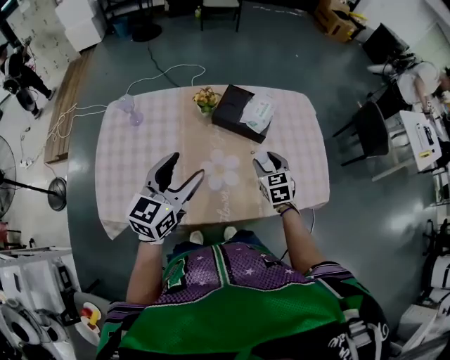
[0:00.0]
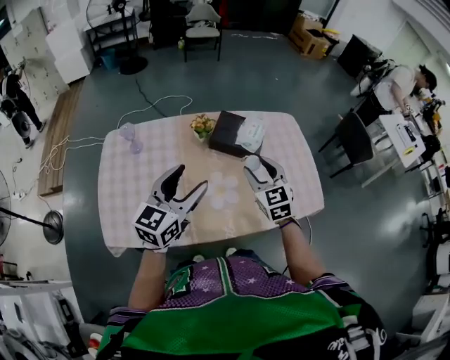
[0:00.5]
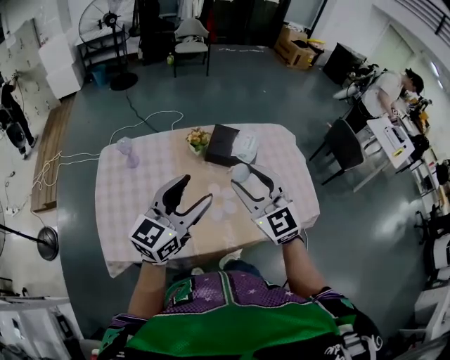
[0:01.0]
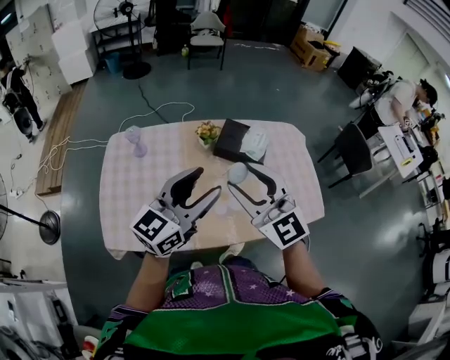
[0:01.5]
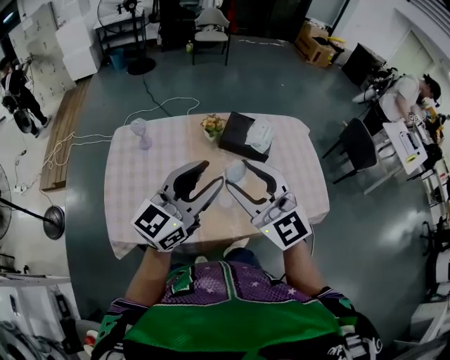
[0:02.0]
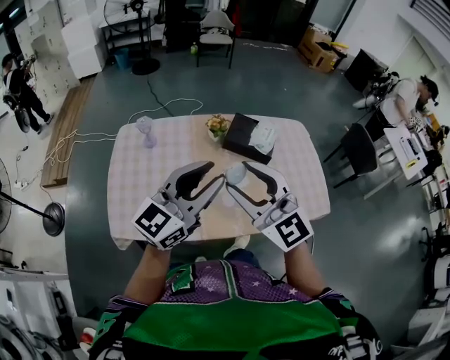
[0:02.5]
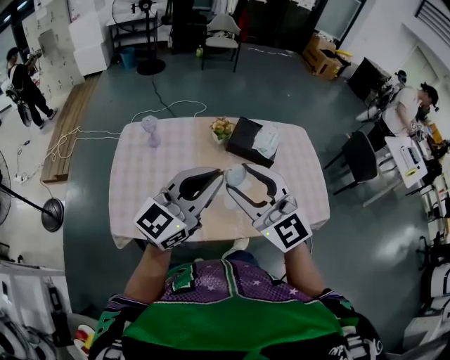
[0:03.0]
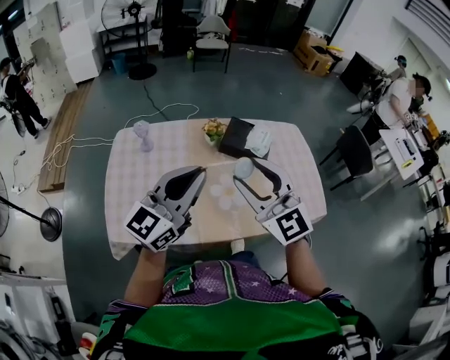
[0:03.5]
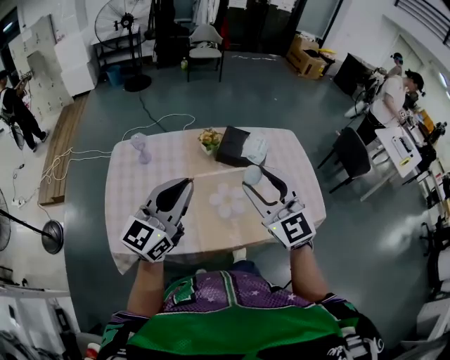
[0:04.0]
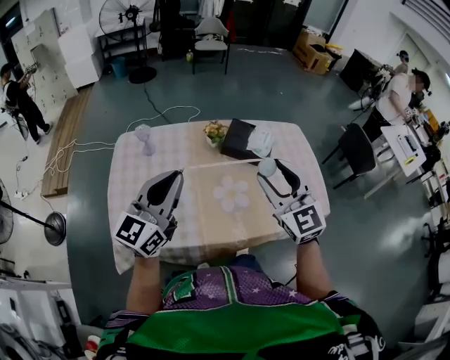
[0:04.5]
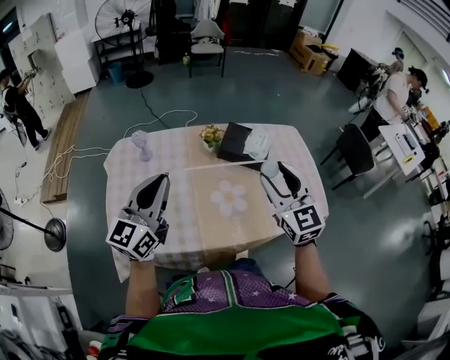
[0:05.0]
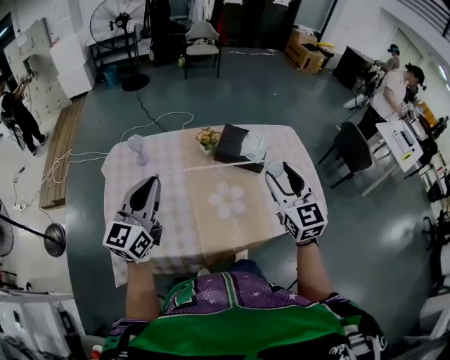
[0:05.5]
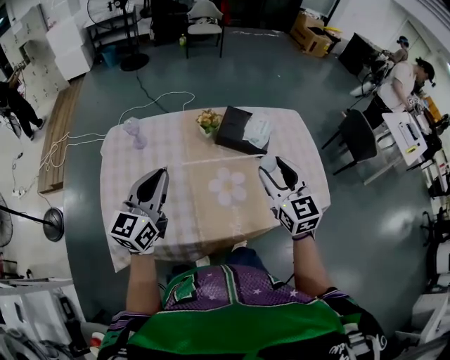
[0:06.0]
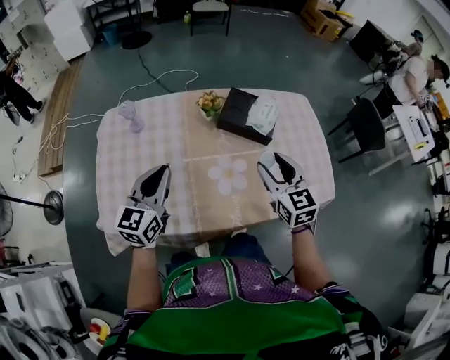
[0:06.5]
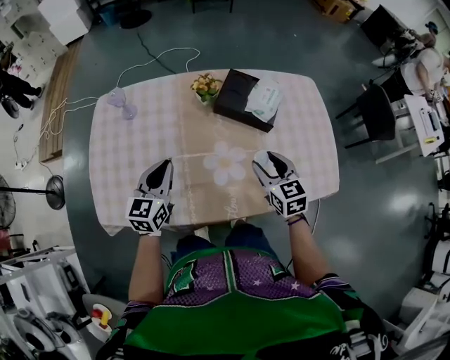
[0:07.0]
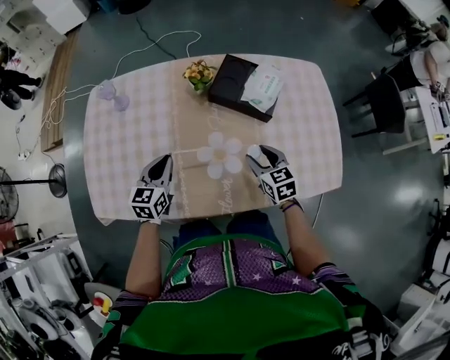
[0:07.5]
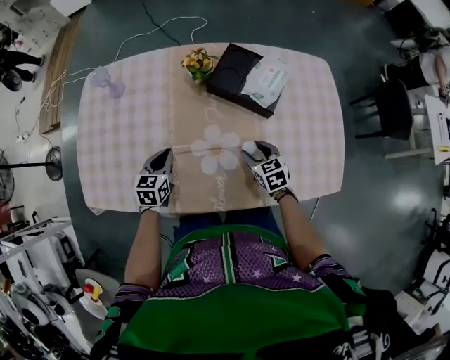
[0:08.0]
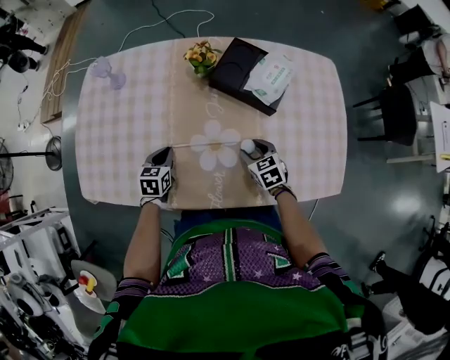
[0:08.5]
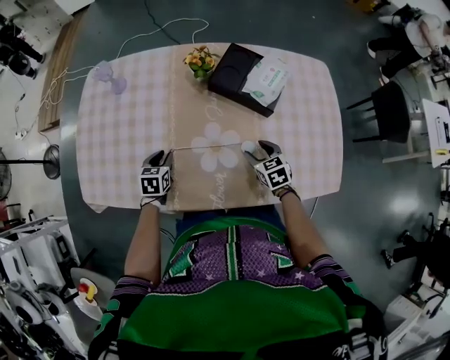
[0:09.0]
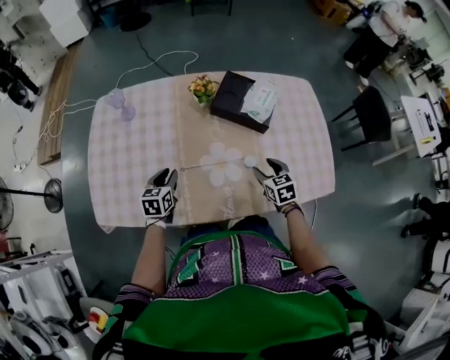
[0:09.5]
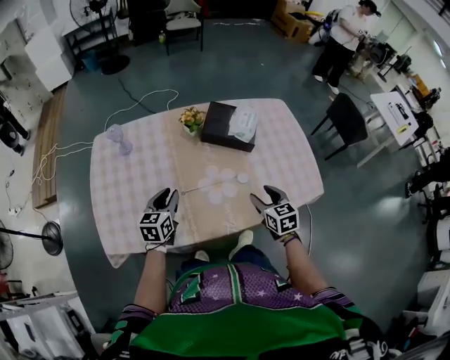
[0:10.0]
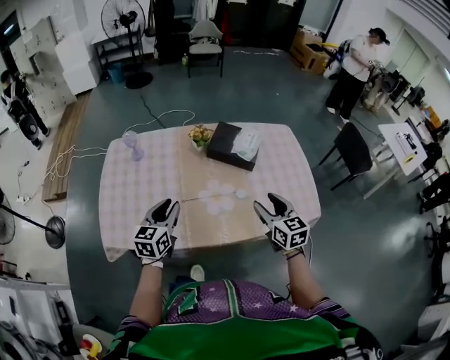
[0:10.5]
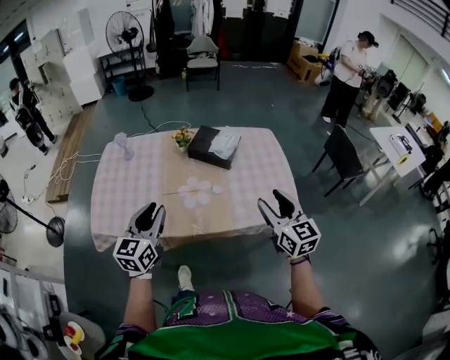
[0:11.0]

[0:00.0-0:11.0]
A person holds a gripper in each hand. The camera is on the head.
0:00.0 to 0:02.0: The left gripper travels upward and backward by roughly 15 cm, swivels approximately 20 degrees, and closes up. Meanwhile the right gripper moves upward, to the left and backward, approximately 40 cm, and angles its fingers upward, by approximately 40 degrees.
0:02.0 to 0:03.5: The left gripper closes up.
0:03.5 to 0:05.5: The left gripper is displaced to the left by some 10 cm. Meanwhile the right gripper shifts approximately 15 cm to the right, downward and forward, and rotates roughly 30 degrees.
0:05.5 to 0:07.5: Both grippers move downward, roughly 30 cm. The left gripper tips its fingers downward by approximately 30 degrees; the right gripper tips its fingers downward by approximately 30 degrees.
0:07.5 to 0:09.0: The left gripper shifts roughly 15 cm downward, and swivels some 20 degrees. The right gripper heads downward, covering roughly 10 cm.
0:09.0 to 0:11.0: The two grippers go approximately 40 cm upward and backward. The right gripper points its fingers approximately 40 degrees further upward. Meanwhile the left gripper angles its fingers upward, by roughly 40 degrees.

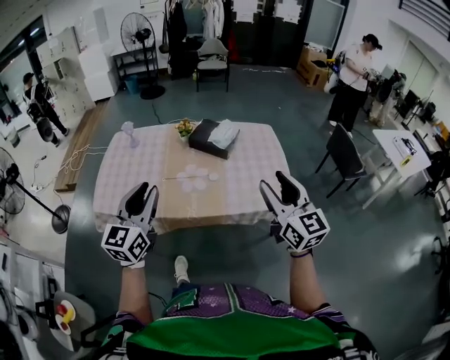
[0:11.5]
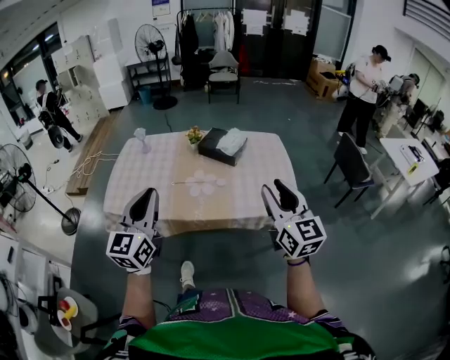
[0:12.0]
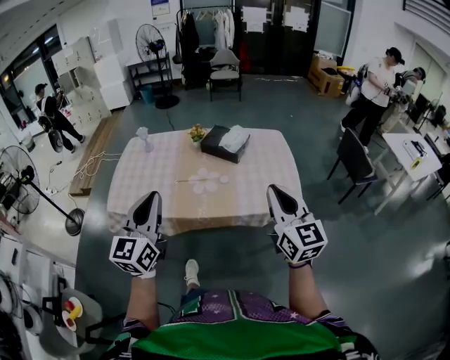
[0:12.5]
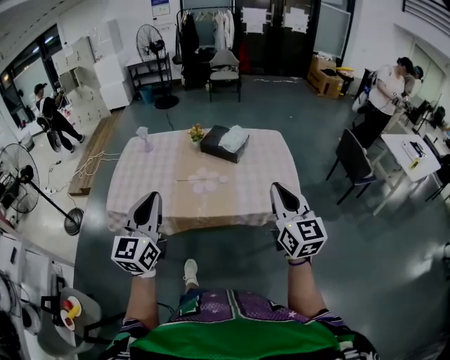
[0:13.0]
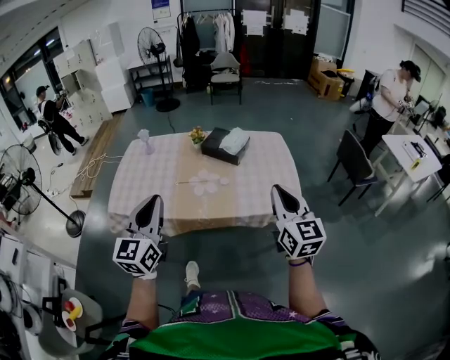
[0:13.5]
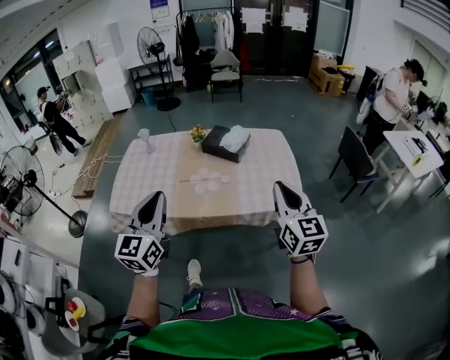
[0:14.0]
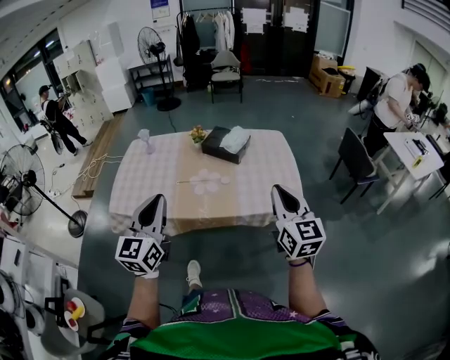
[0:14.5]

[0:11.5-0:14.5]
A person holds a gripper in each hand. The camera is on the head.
0:11.5 to 0:13.0: The left gripper heads backward, covering approximately 5 cm, while the right gripper closes up.
0:13.0 to 0:14.5: The grippers move only a little.

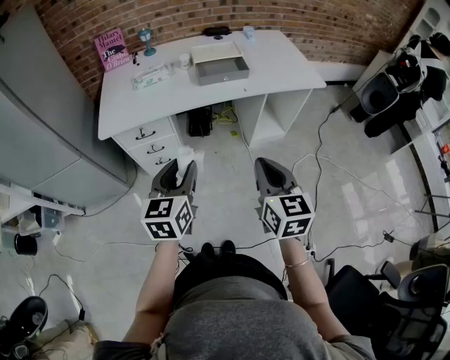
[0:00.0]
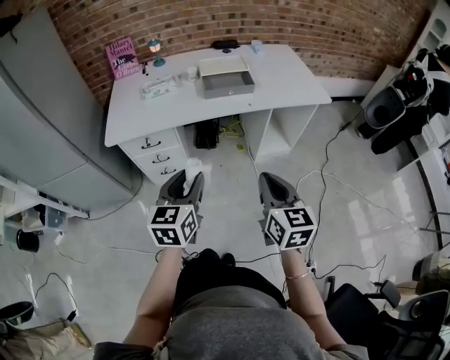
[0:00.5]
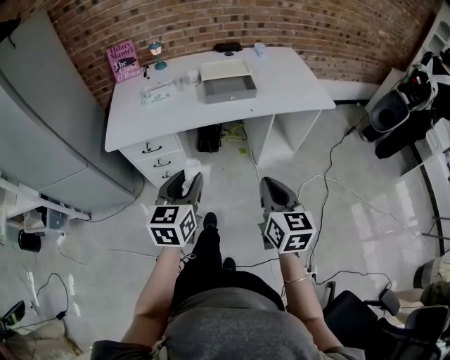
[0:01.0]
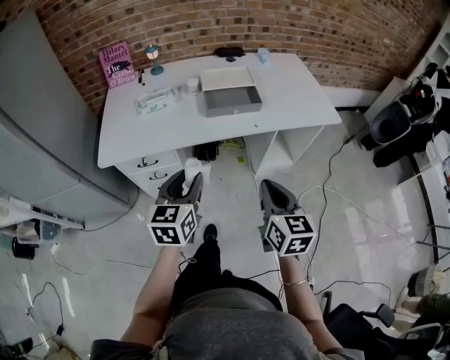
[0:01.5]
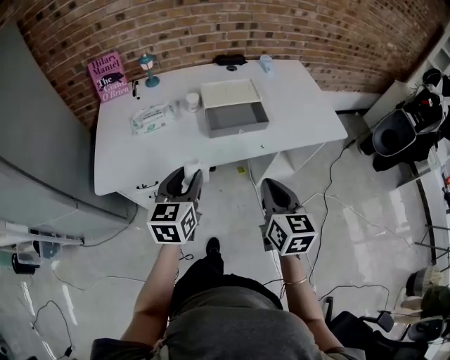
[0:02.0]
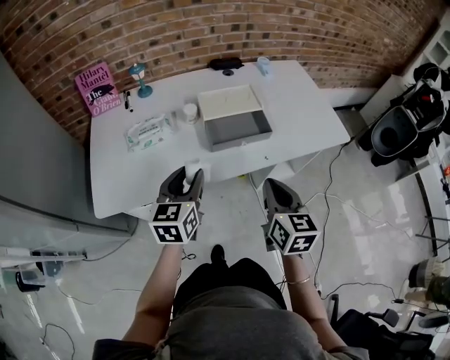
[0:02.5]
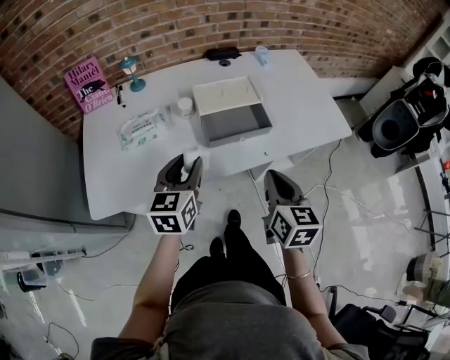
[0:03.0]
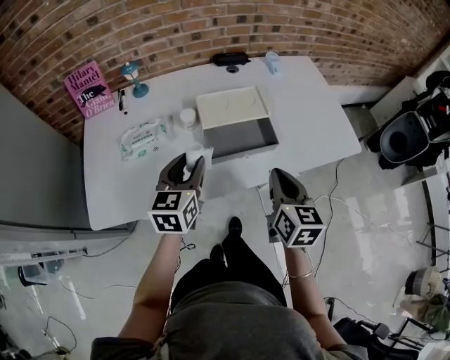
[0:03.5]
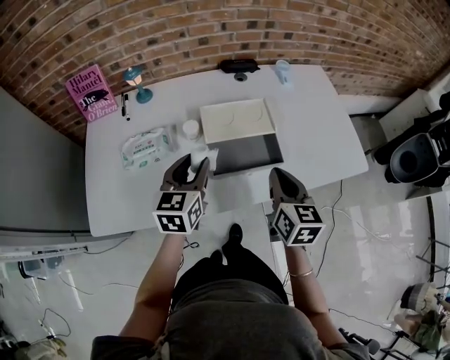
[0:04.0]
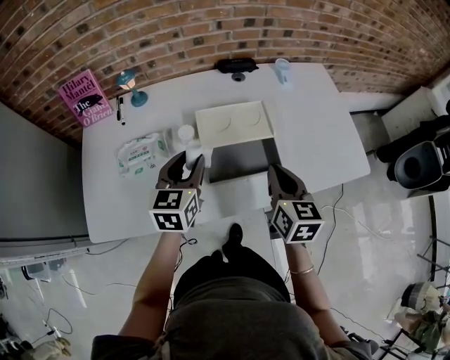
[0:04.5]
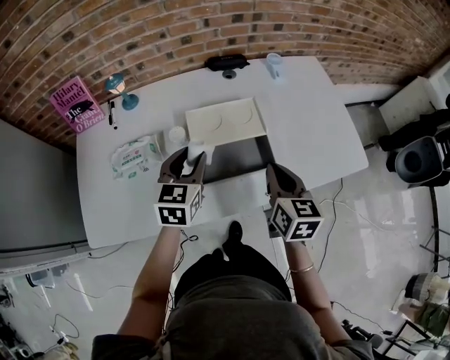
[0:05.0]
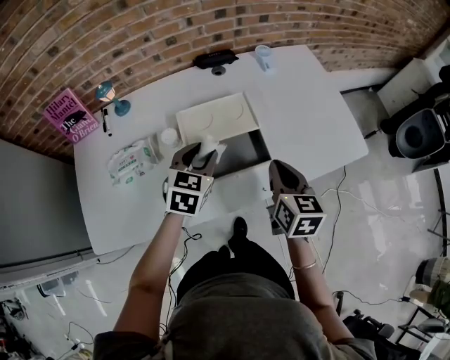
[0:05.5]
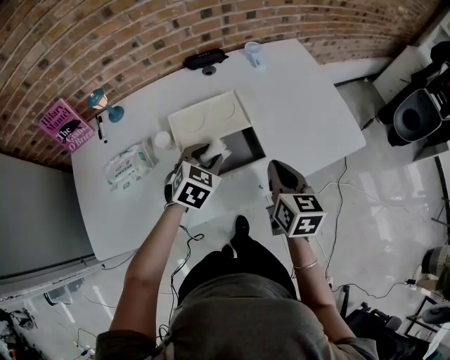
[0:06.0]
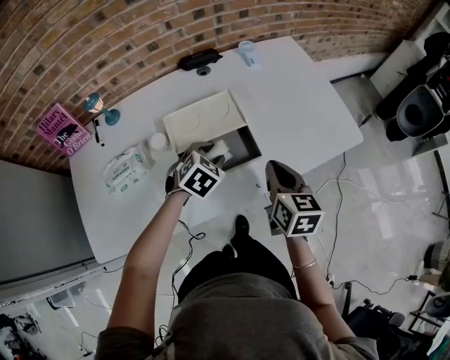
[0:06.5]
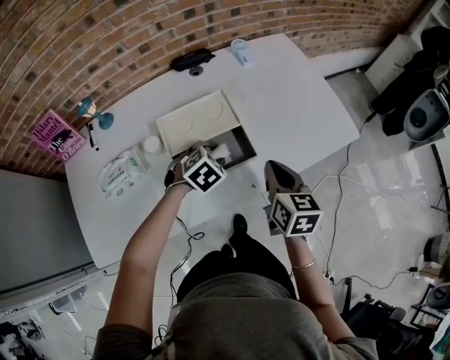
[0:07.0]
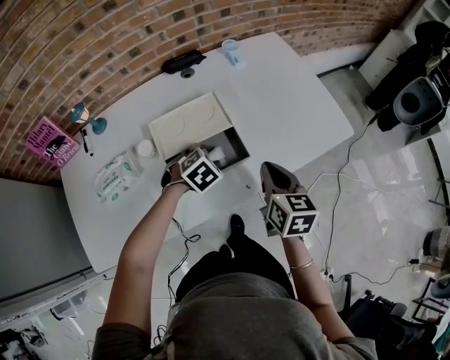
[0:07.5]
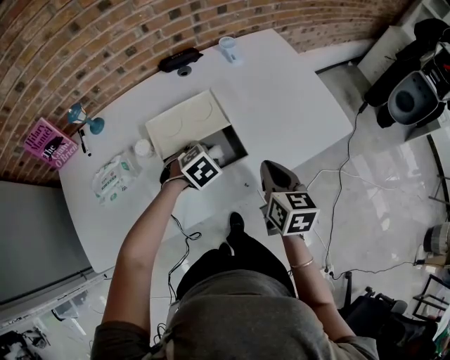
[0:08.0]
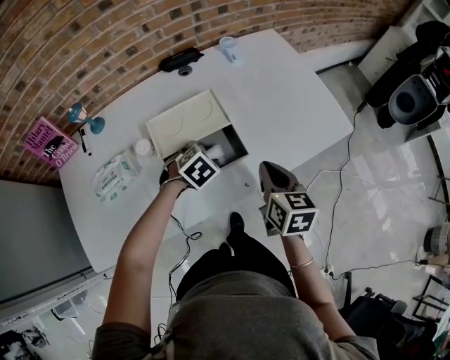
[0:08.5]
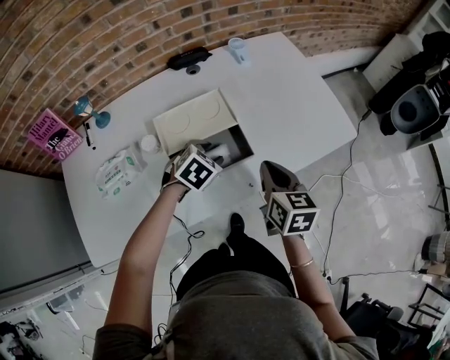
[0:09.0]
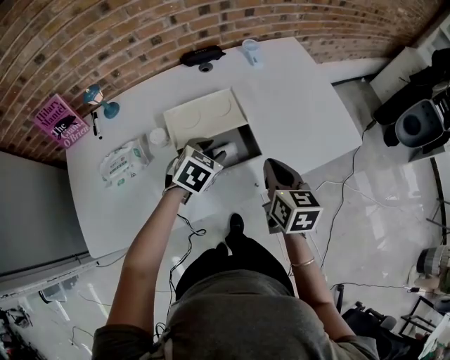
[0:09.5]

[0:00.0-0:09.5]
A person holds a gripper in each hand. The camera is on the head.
0:00.0 to 0:02.0: Both grippers travel together forward, about 25 cm.
0:02.0 to 0:04.0: The two grippers go some 25 cm forward.
0:04.0 to 0:05.5: The right gripper changes place by roughly 5 cm. The left gripper moves to the right and forward, approximately 10 cm, and turns by some 30 degrees.
0:05.5 to 0:07.5: The left gripper heads downward and to the right, covering some 15 cm, and angles its fingers downward, by some 30 degrees.
0:07.5 to 0:09.5: The left gripper ends up approximately 5 cm from where it was, and turns by about 20 degrees.

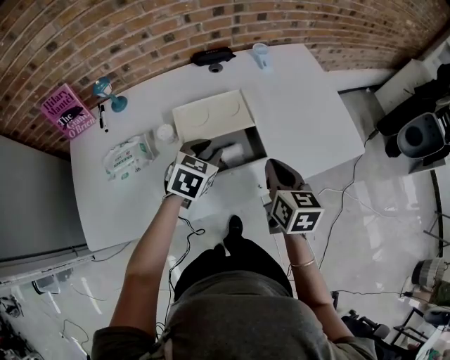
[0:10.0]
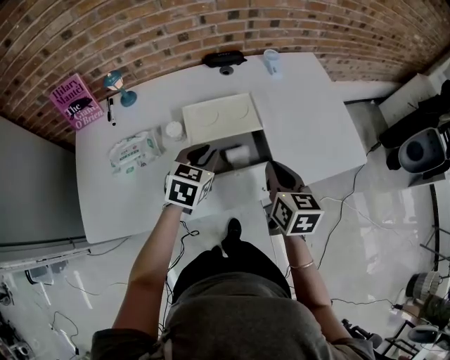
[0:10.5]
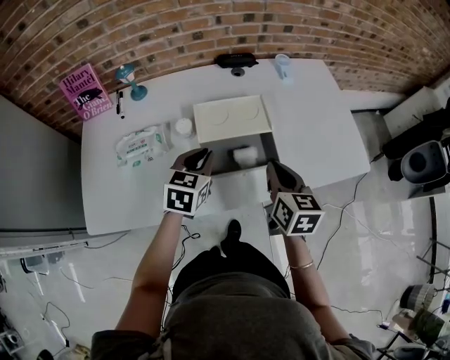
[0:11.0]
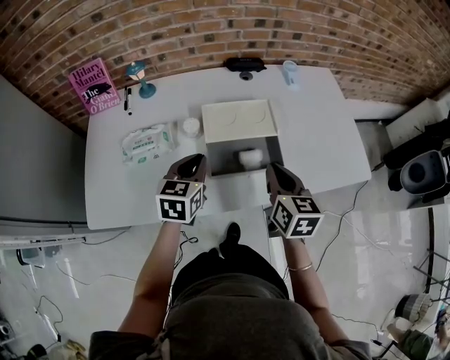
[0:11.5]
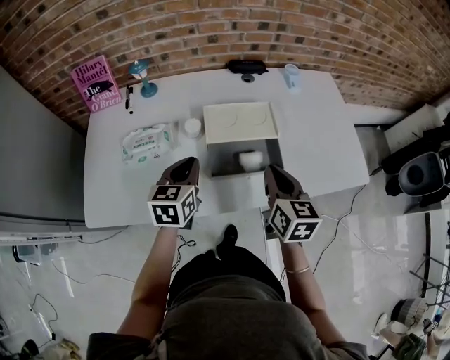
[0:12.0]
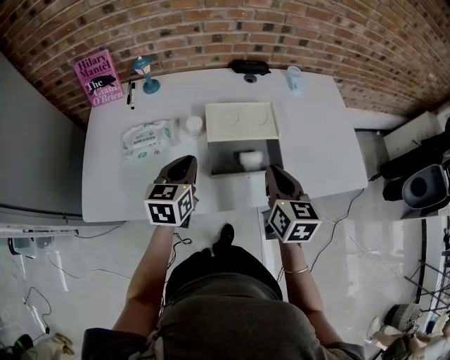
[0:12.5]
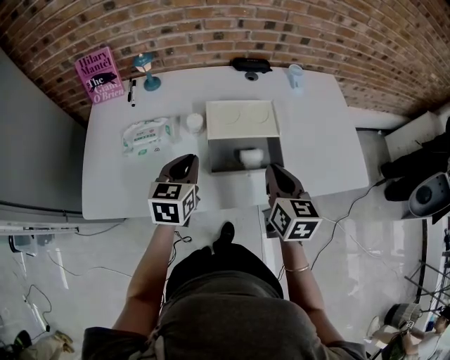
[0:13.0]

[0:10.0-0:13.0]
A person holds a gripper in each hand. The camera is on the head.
0:10.0 to 0:11.5: The right gripper travels to the left by some 5 cm, while the left gripper heads to the left and backward, covering roughly 10 cm, swivels approximately 30 degrees, and closes its fingers.
0:11.5 to 0:13.0: The grippers move only a little.
